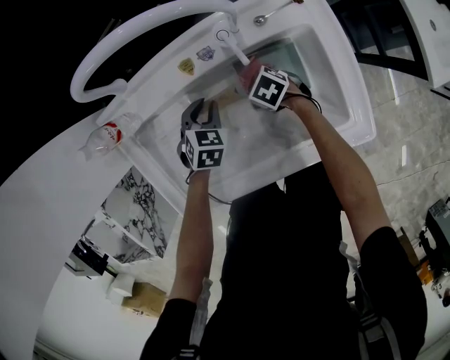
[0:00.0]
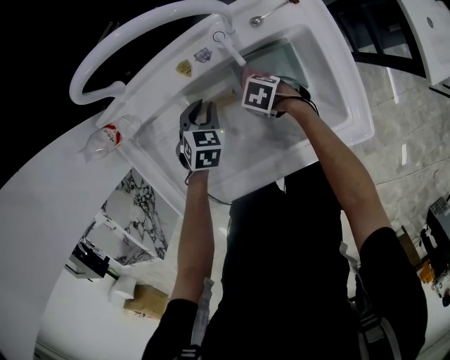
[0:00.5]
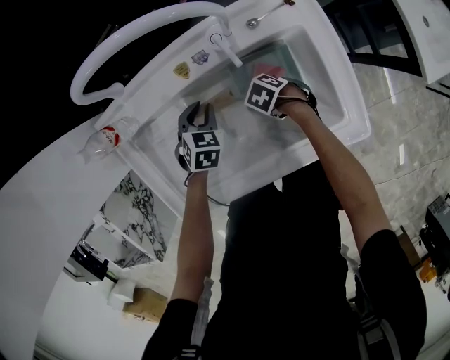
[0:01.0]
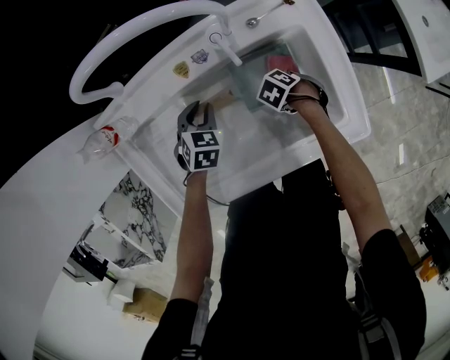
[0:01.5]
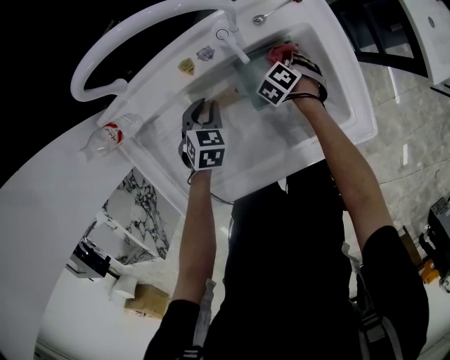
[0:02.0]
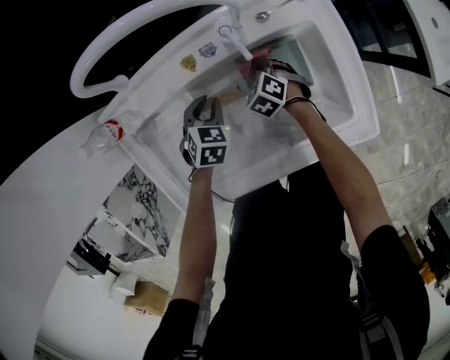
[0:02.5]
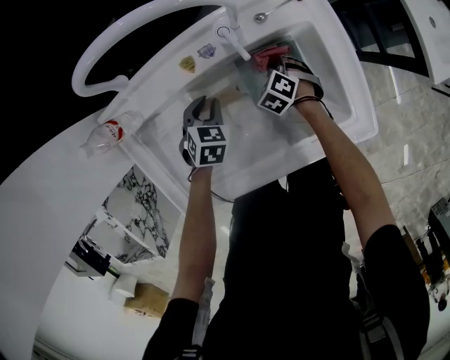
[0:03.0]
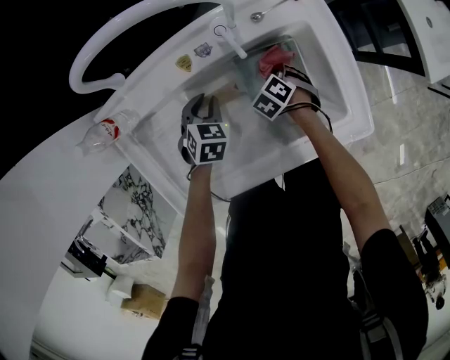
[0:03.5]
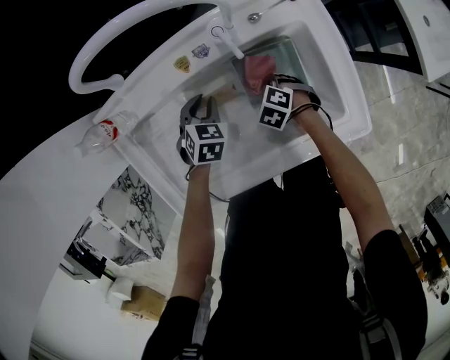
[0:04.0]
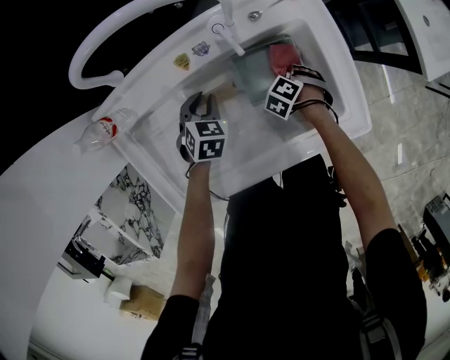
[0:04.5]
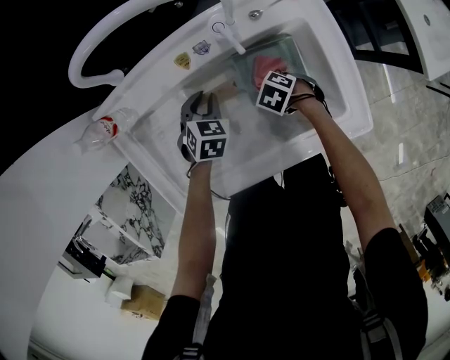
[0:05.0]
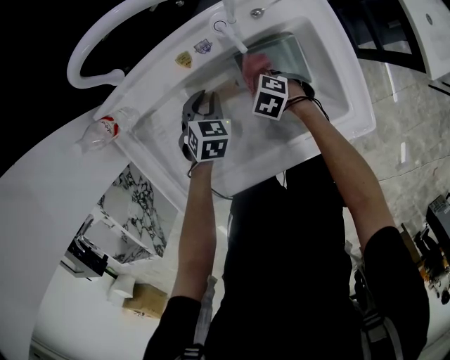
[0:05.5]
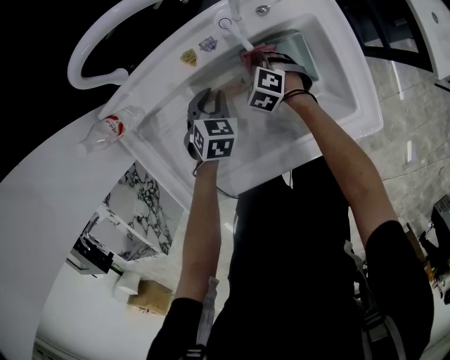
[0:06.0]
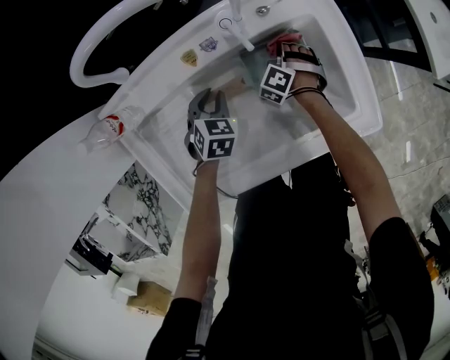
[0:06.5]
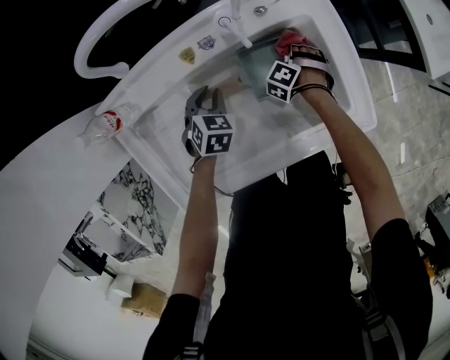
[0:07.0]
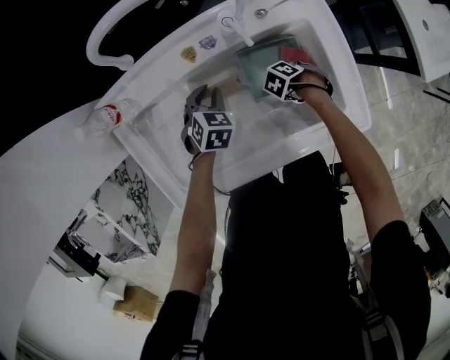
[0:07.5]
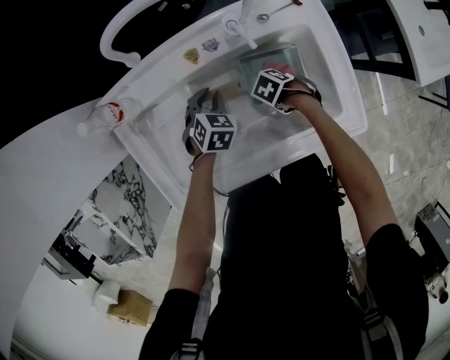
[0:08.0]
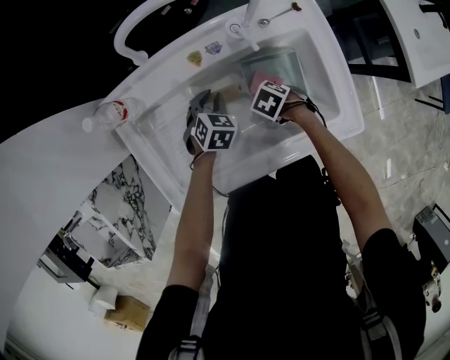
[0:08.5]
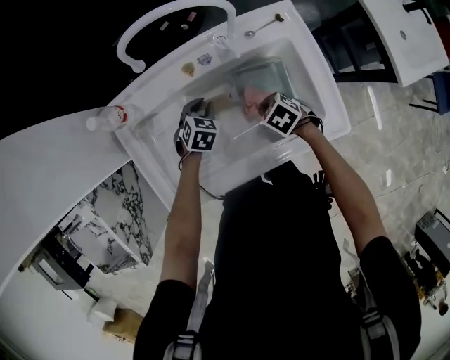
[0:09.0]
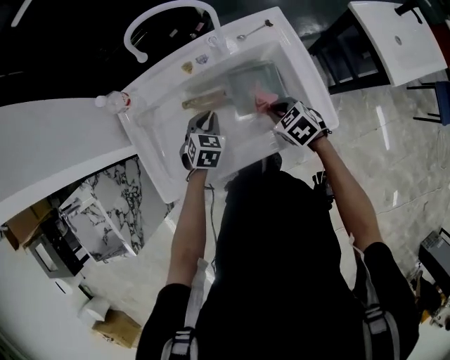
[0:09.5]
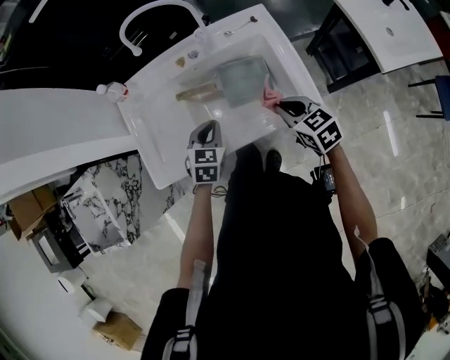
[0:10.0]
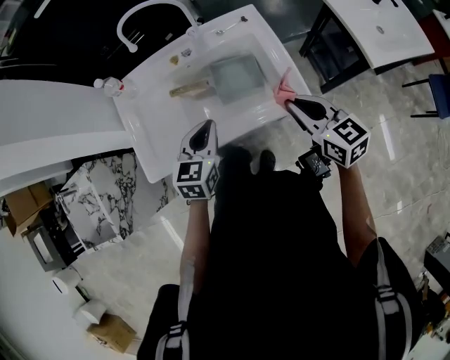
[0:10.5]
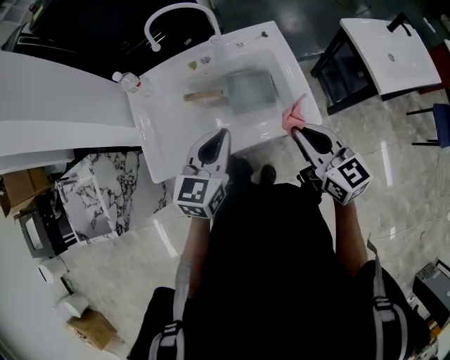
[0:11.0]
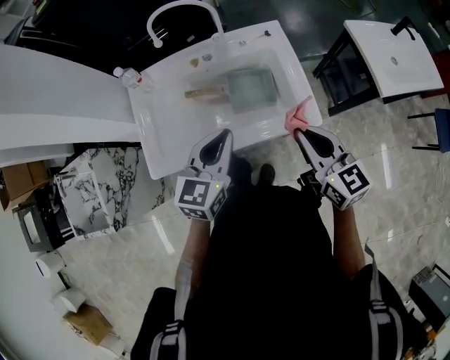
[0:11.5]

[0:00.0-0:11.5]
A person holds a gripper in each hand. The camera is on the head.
0:00.0 to 0:02.0: The right gripper shifts by roughly 15 cm, and rotates some 50 degrees.
0:02.0 to 0:04.0: The right gripper ends up about 10 cm from where it was, and rotates some 30 degrees.
0:04.0 to 0:06.0: The right gripper shifts by roughly 10 cm.
0:06.0 to 0:07.5: The right gripper ends up approximately 15 cm from where it was, and swivels about 40 degrees.
0:07.5 to 0:09.5: The right gripper is displaced upward by roughly 20 cm, and swivels some 50 degrees, while the left gripper moves approximately 10 cm.
0:09.5 to 0:11.5: The grippers both shift upward and backward by roughly 30 cm. The left gripper angles its fingers upward, by roughly 30 degrees. Meanwhile the right gripper tilts its fingers about 40 degrees upward.

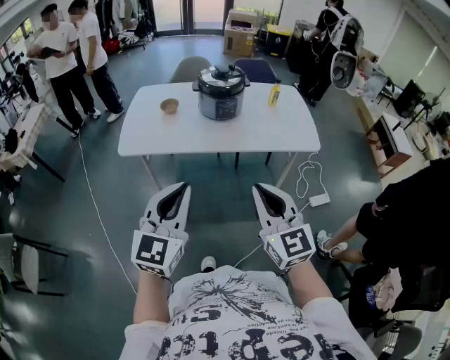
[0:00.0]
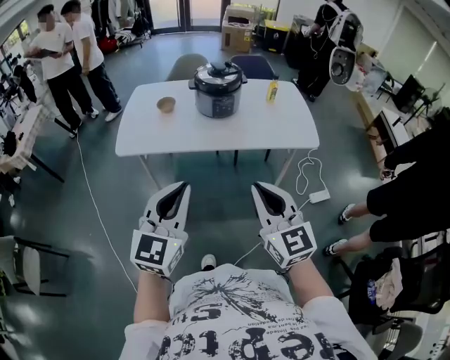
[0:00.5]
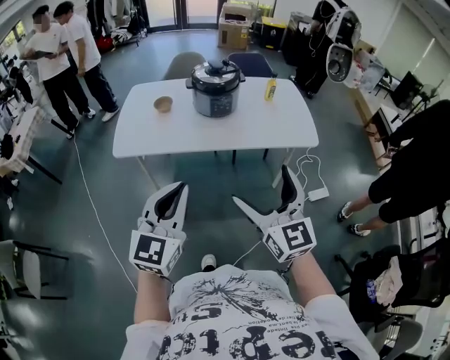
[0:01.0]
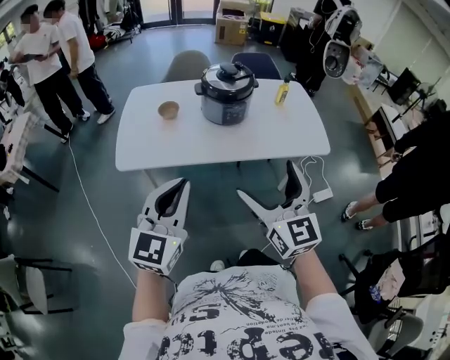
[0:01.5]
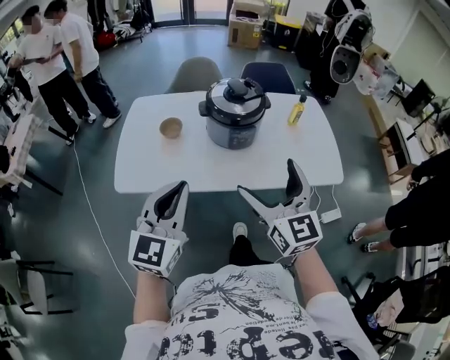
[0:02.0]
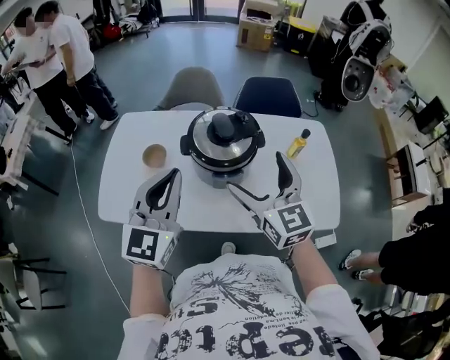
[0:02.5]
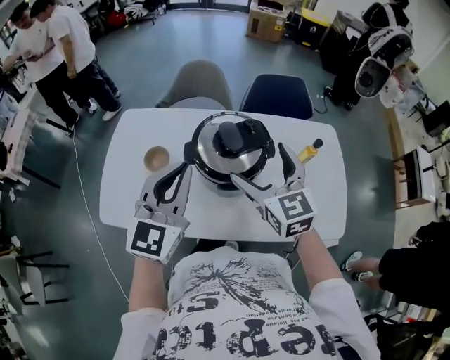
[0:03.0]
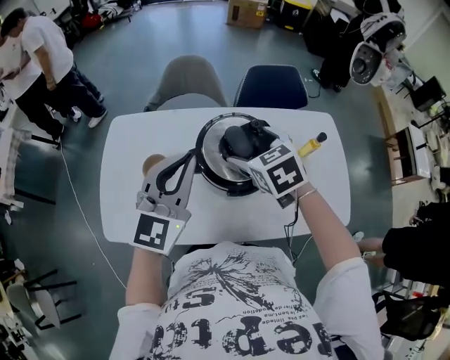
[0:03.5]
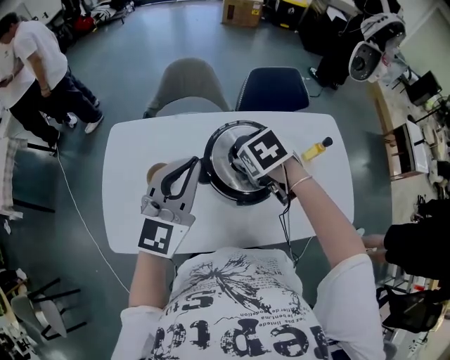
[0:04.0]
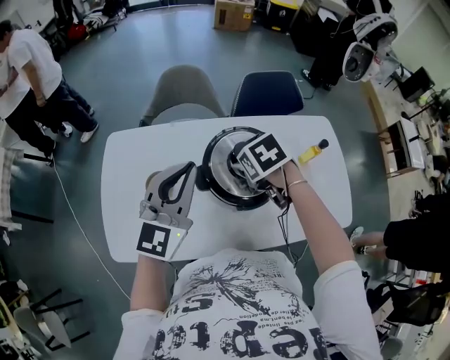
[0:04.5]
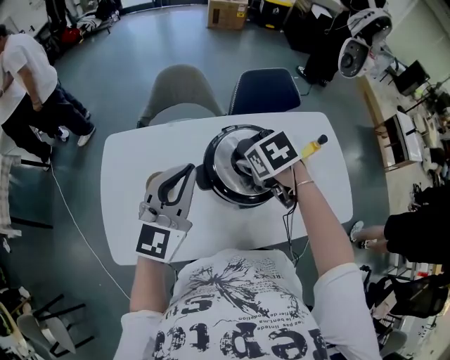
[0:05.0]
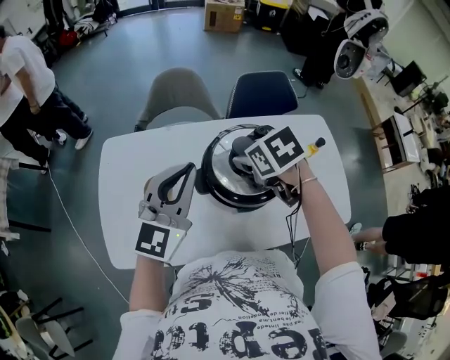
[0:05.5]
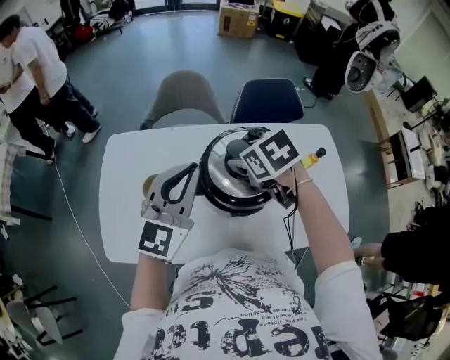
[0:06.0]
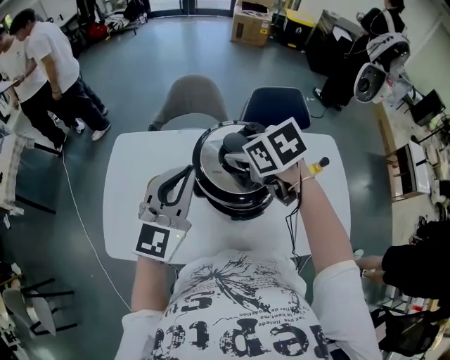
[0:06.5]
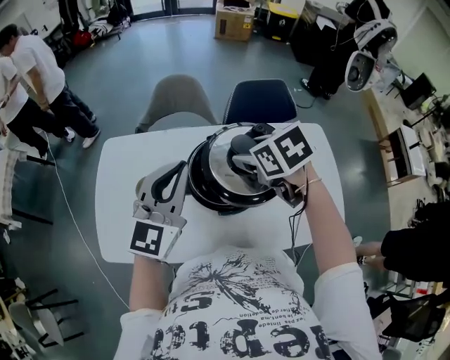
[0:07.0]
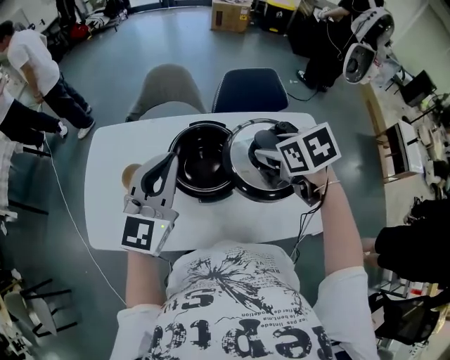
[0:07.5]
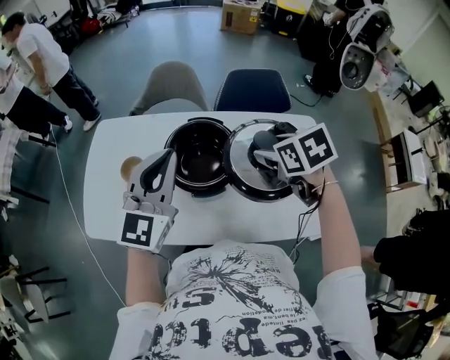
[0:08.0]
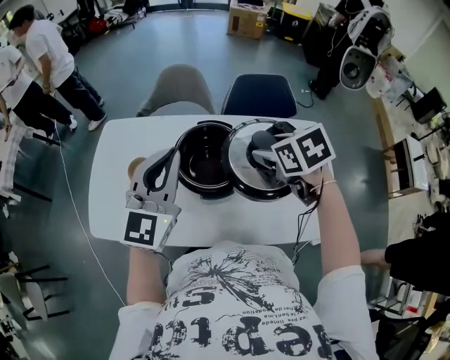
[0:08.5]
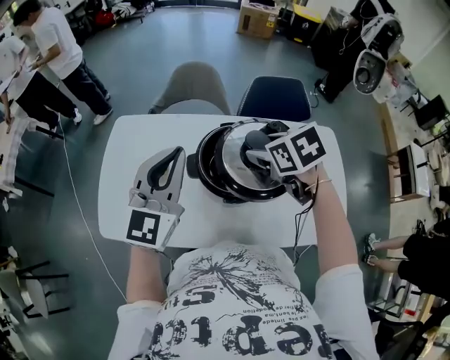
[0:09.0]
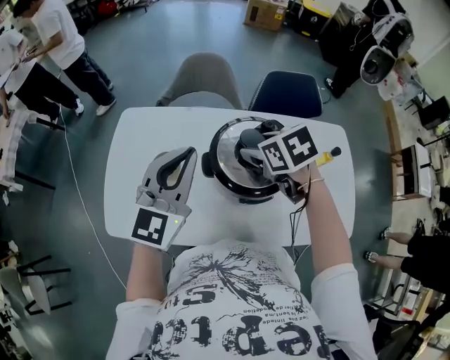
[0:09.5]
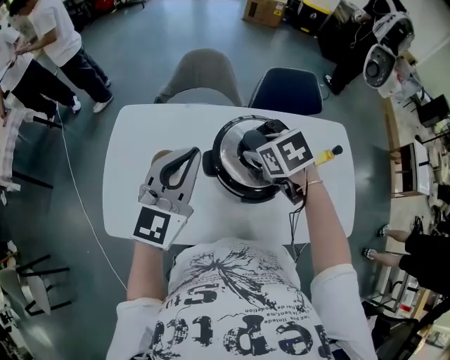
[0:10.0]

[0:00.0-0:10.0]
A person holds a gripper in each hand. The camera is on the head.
0:00.0 to 0:02.0: The grippers both shift forward by some 35 cm. The right gripper opens.
0:02.0 to 0:04.0: The two grippers travel together, forward, about 50 cm. The right gripper tips its fingers downward by approximately 70 degrees, and closes.
0:04.0 to 0:06.0: The grippers make only small movements.
0:06.0 to 0:08.0: The right gripper is displaced to the right and backward by about 20 cm; the left gripper travels to the right and backward by some 10 cm.
0:08.0 to 0:10.0: Both grippers move to the left and forward, approximately 20 cm.

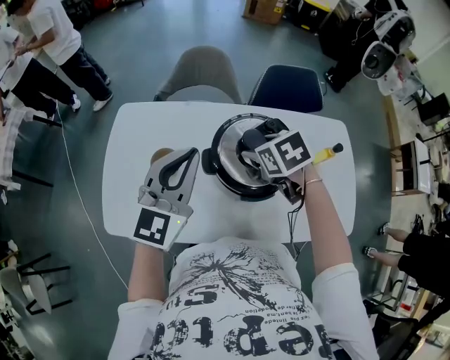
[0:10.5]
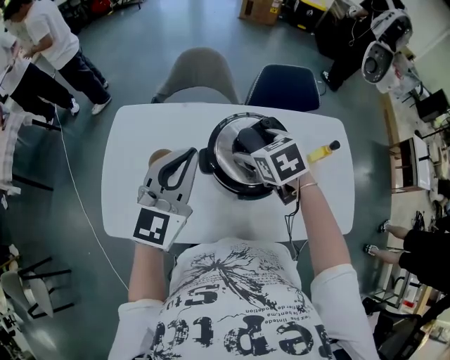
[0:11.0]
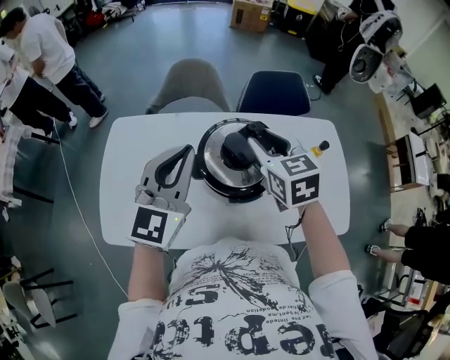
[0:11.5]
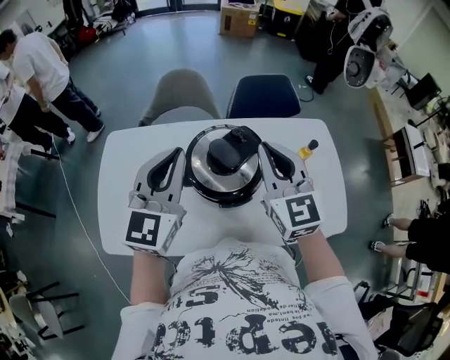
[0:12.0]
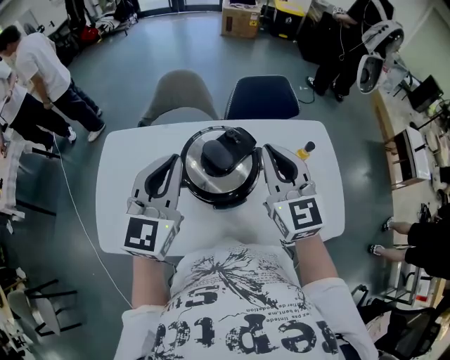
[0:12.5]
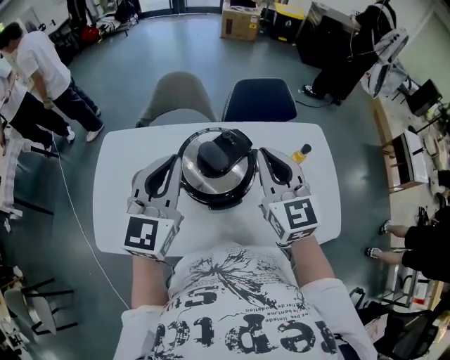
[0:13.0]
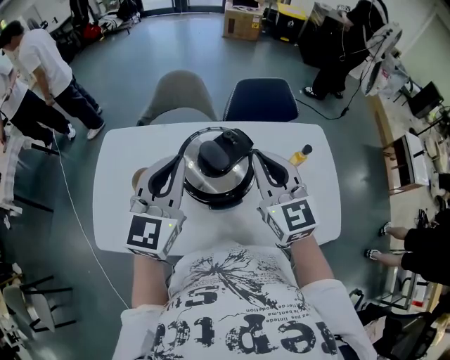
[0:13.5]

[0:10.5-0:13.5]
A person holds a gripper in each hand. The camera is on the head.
0:10.5 to 0:12.0: The left gripper moves to the right, approximately 5 cm, while the right gripper goes roughly 20 cm upward, to the right and backward, angles its fingers upward, by roughly 50 degrees, and closes.
0:12.0 to 0:13.5: The grippers stay close to where they were, moving slightly.

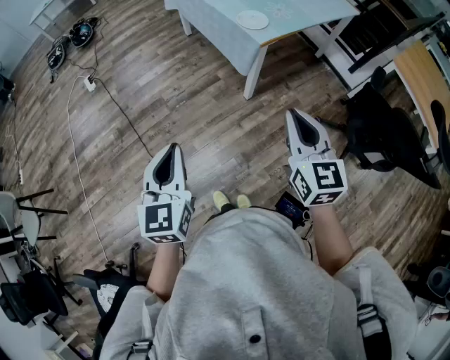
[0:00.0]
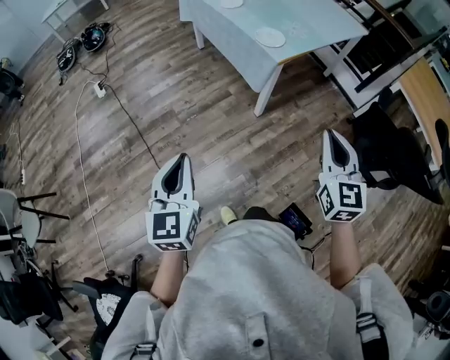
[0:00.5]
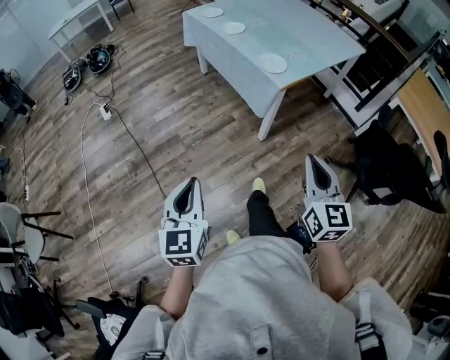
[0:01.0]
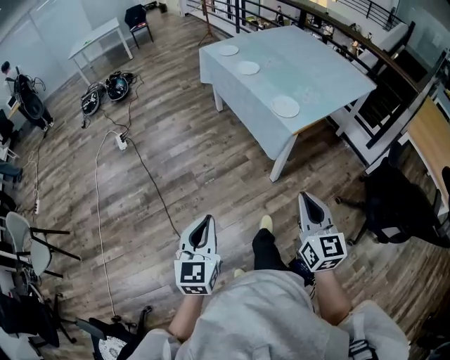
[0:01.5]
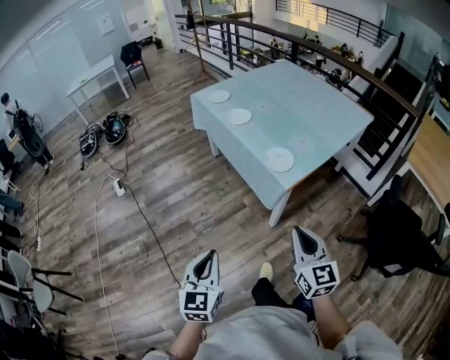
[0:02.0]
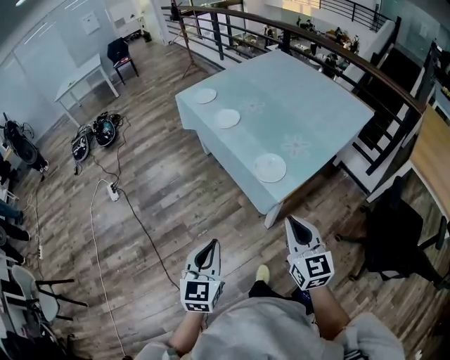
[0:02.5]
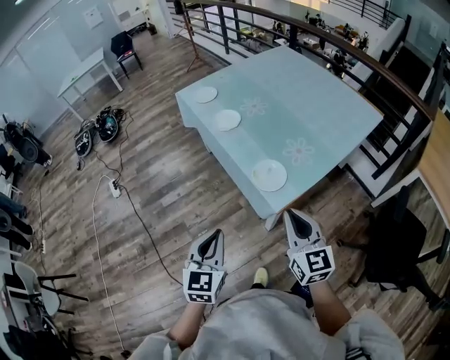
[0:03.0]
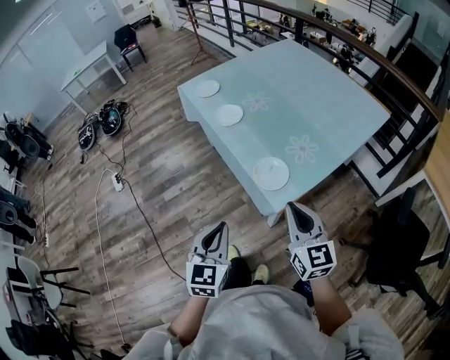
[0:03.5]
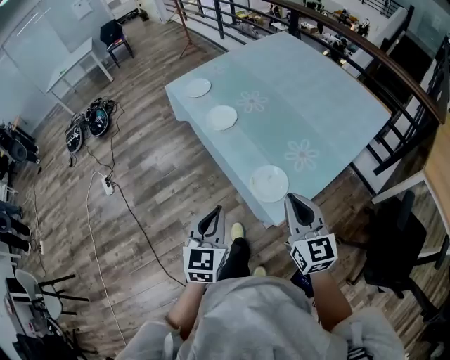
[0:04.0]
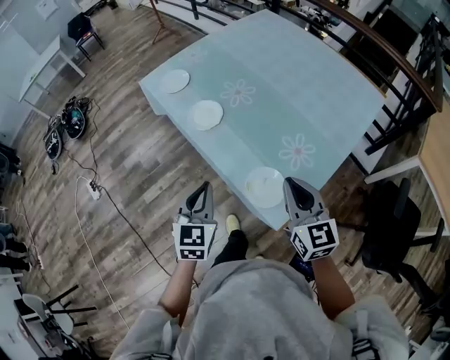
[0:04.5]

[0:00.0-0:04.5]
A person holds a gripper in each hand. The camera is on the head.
0:00.0 to 0:02.0: Both grippers move forward, approximately 20 cm.
0:02.0 to 0:04.5: Both grippers move forward, approximately 40 cm.
